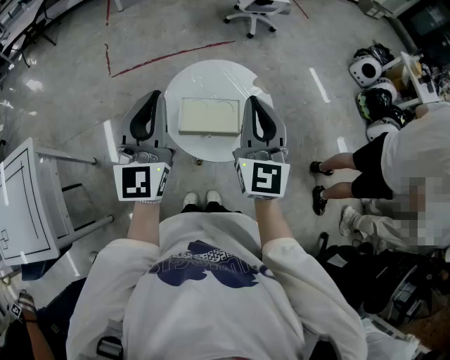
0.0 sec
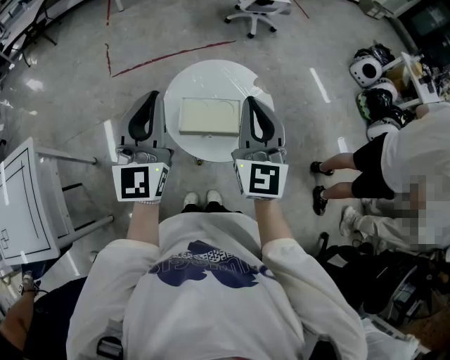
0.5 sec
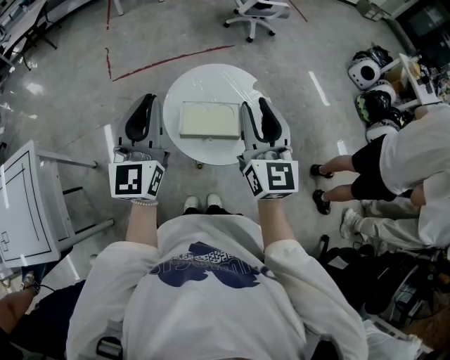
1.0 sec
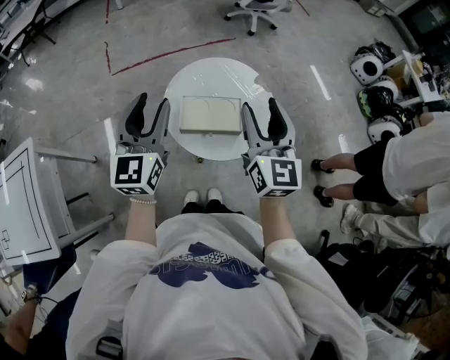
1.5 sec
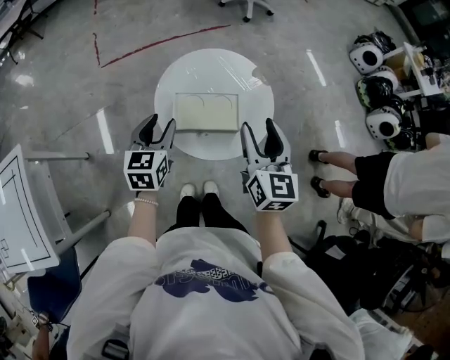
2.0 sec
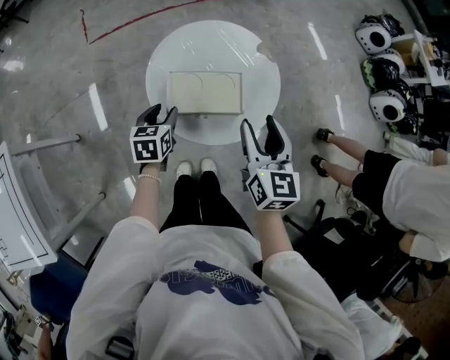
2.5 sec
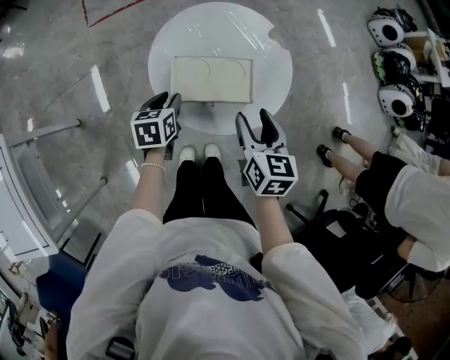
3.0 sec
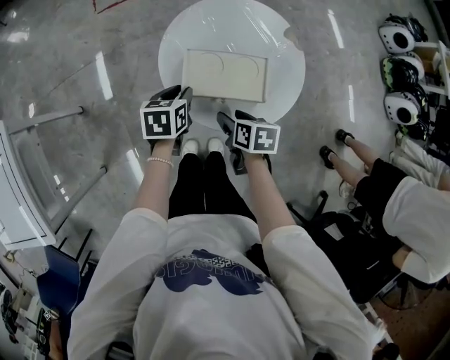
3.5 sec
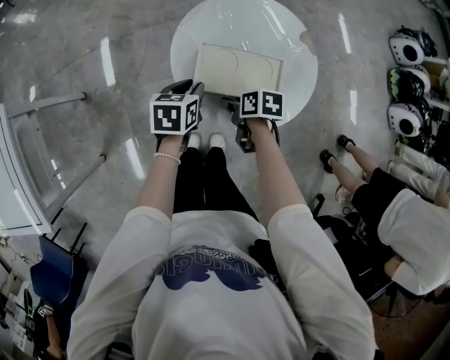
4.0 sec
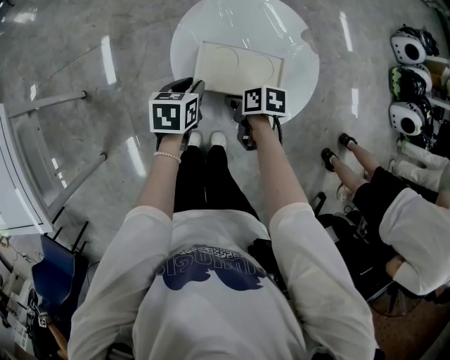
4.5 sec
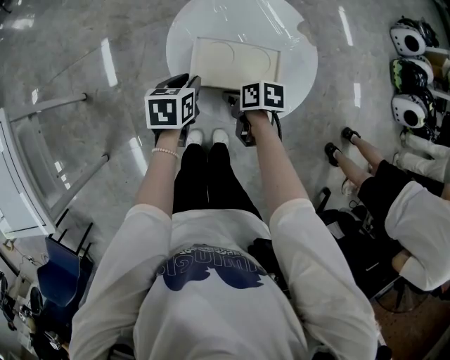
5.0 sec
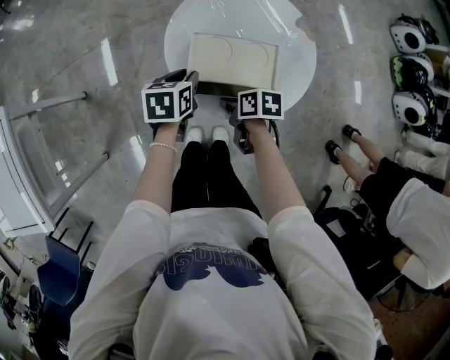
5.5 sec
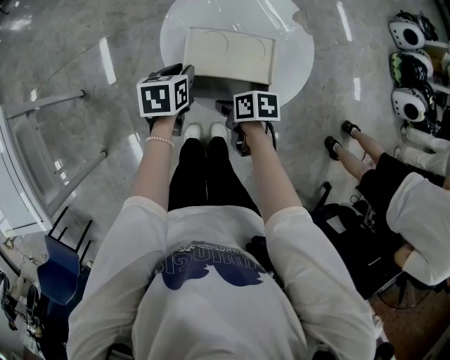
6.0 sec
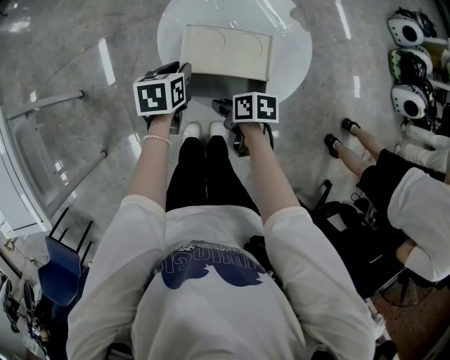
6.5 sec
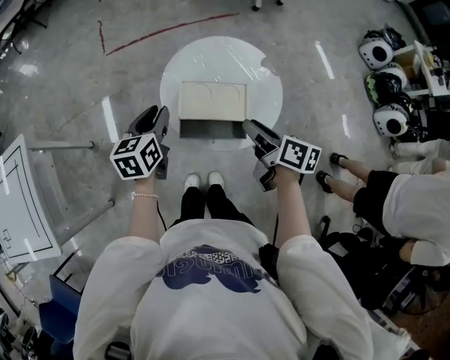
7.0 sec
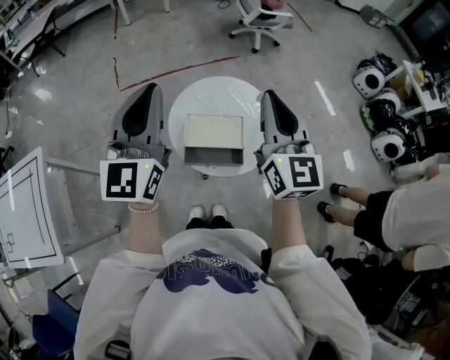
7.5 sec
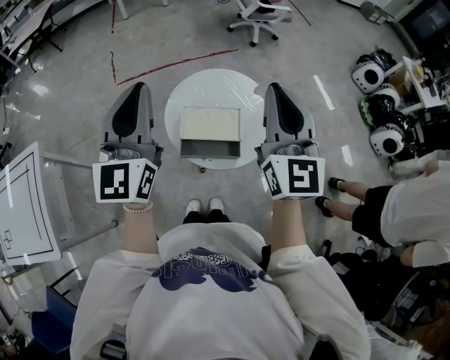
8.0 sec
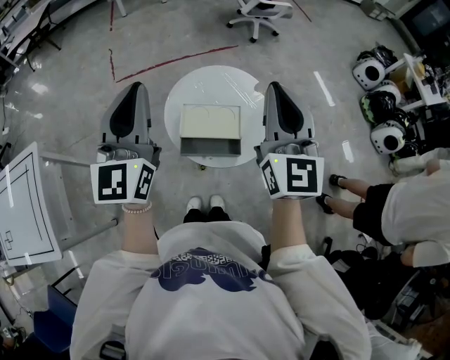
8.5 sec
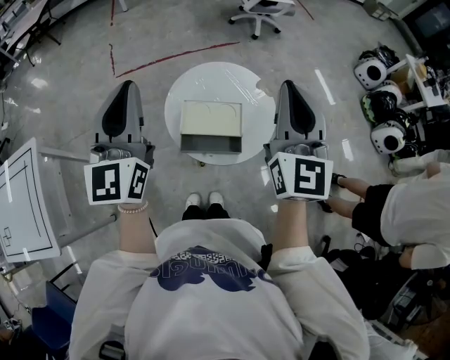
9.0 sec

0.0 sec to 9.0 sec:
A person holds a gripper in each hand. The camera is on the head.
0.0 sec to 2.0 sec: The right gripper travels downward by approximately 10 cm, rotates roughly 30 degrees, and opens. The left gripper is displaced downward by about 25 cm, tips its fingers downward by about 40 degrees, and opens.
2.0 sec to 4.5 sec: The right gripper moves downward, approximately 35 cm, tilts its fingers some 40 degrees downward, and closes, while the left gripper is displaced downward by some 20 cm, and swivels roughly 30 degrees.
4.5 sec to 7.0 sec: The two grippers go some 20 cm upward. The left gripper turns by some 20 degrees, while the right gripper changes its angle by approximately 40 degrees.
7.0 sec to 9.0 sec: Both grippers travel together upward, roughly 30 cm. The right gripper rotates around the line of its fingers by about 60 degrees, counterclockwise from behind, and closes. Meanwhile the left gripper tilts its fingers approximately 40 degrees upward, and closes.

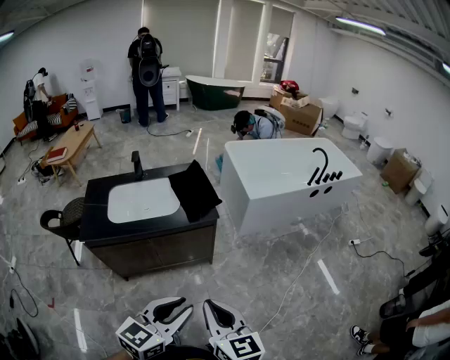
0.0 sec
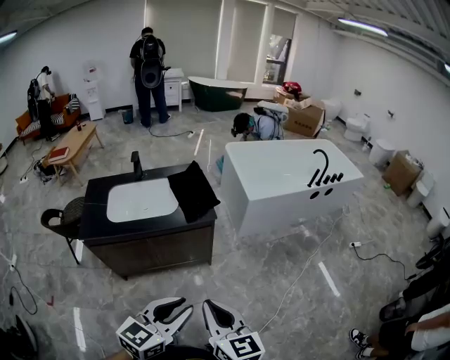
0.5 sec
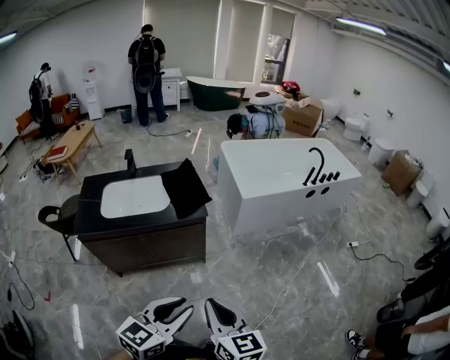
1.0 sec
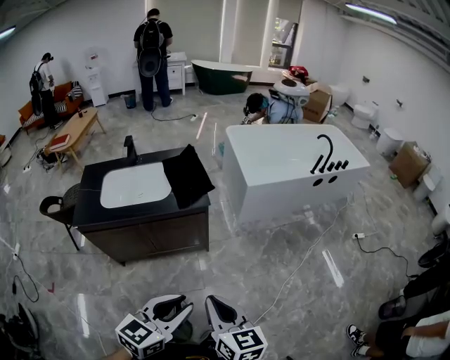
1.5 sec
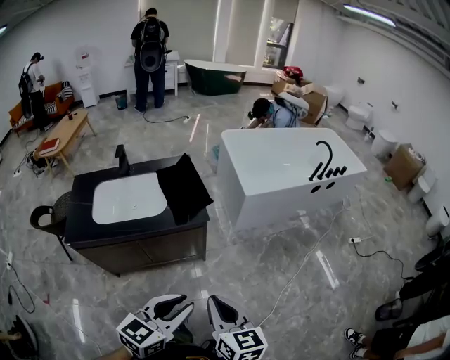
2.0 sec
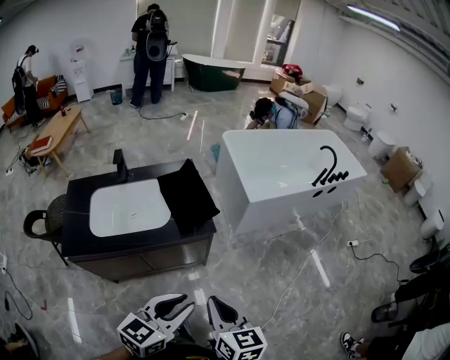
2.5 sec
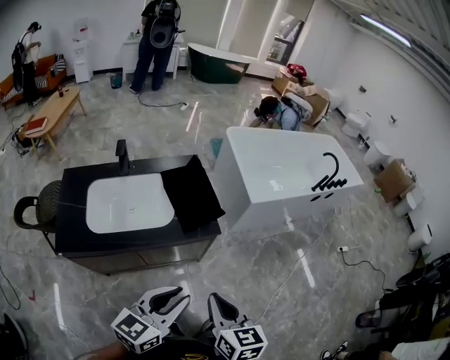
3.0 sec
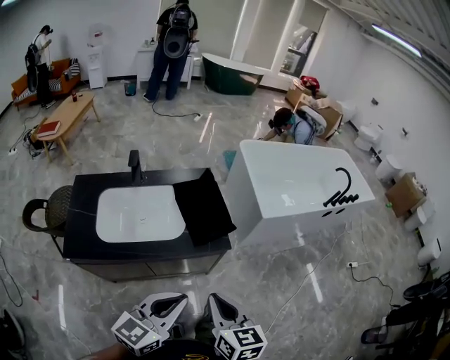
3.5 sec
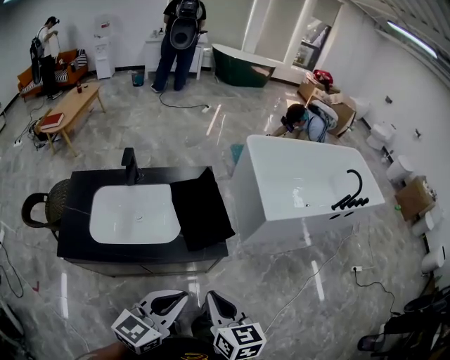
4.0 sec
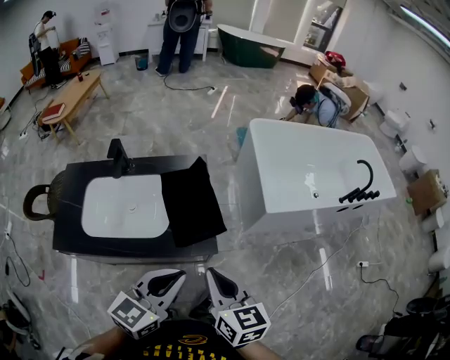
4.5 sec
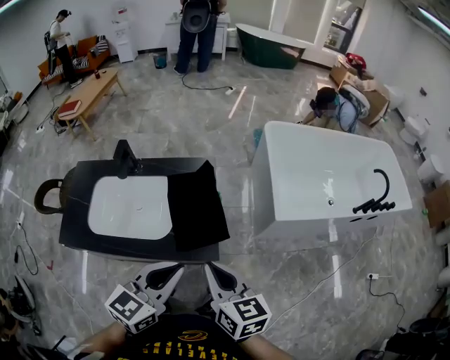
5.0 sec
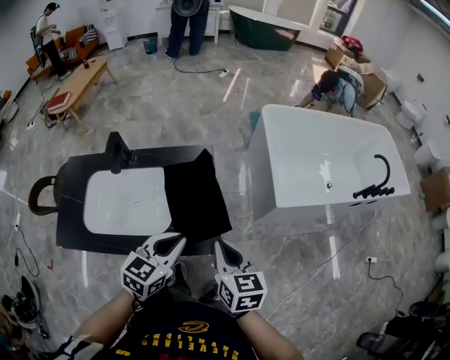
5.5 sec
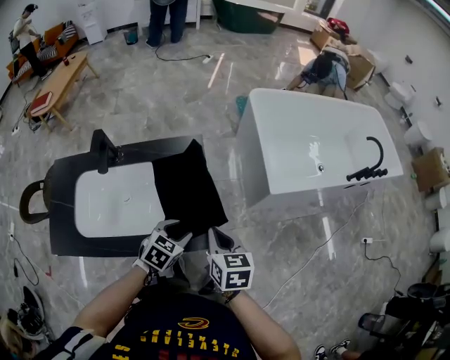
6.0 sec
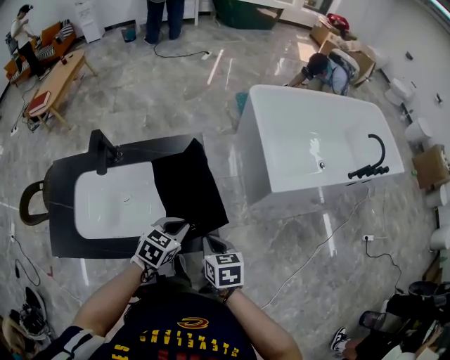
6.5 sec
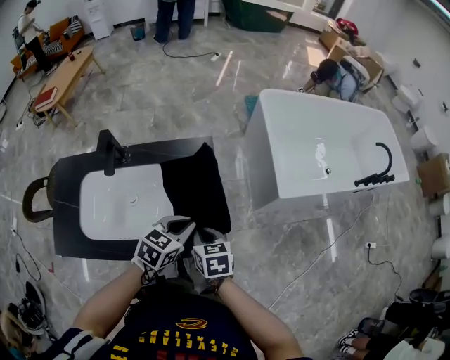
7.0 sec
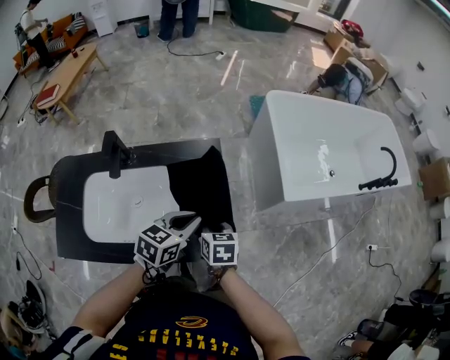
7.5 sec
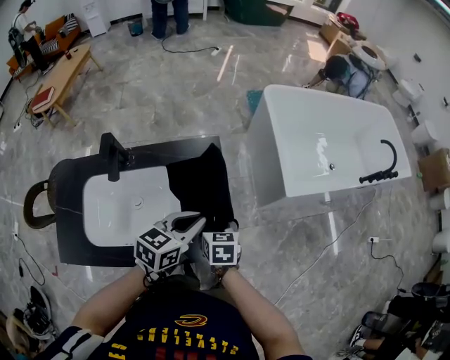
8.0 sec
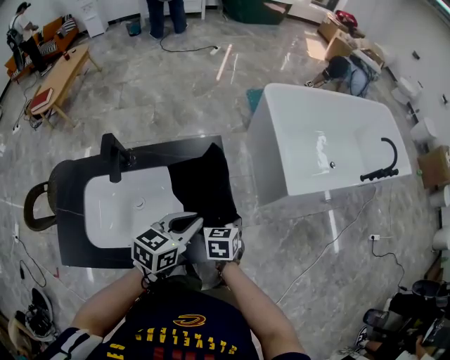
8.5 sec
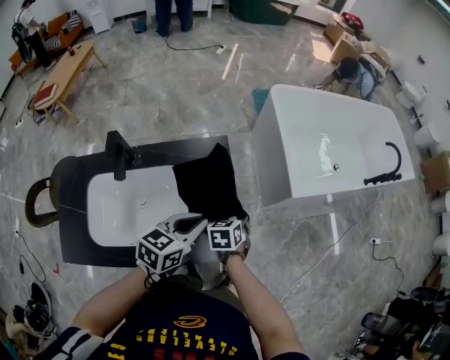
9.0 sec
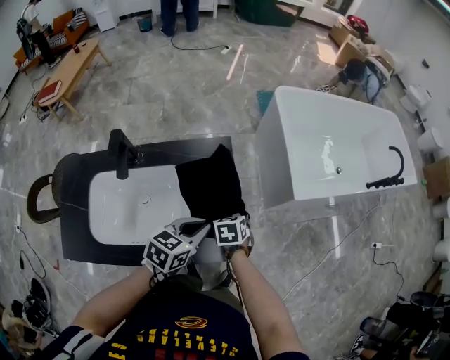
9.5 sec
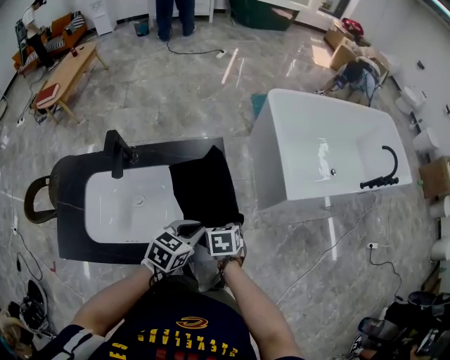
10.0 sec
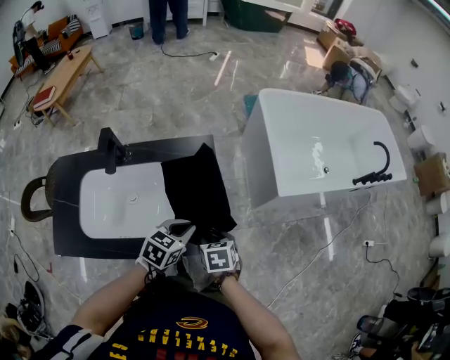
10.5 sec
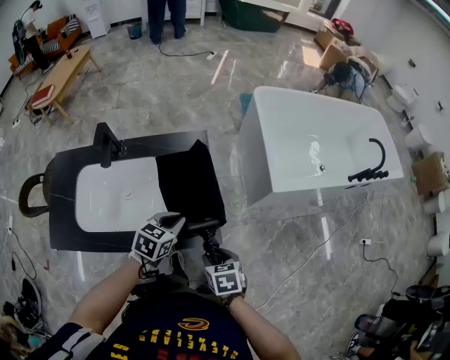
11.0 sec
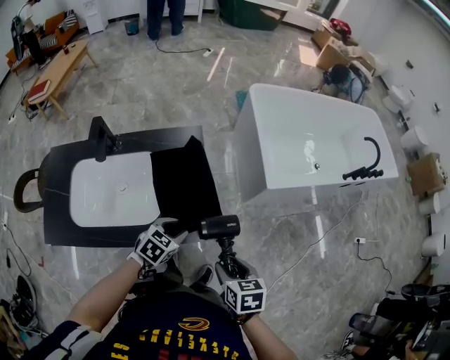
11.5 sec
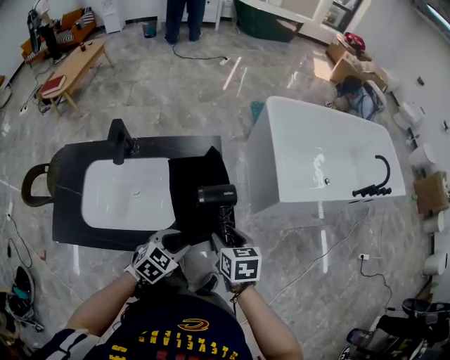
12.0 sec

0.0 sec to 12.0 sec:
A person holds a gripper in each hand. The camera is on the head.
0.0 sec to 2.0 sec: Both grippers travel together forward and to the right, about 10 cm.
2.0 sec to 4.0 sec: Both grippers travel together forward and to the left, about 25 cm. The left gripper closes up.
4.0 sec to 6.0 sec: Both grippers travel together forward and downward, approximately 30 cm. The left gripper points its fingers some 40 degrees further downward, and opens up.
6.0 sec to 8.0 sec: The right gripper shifts some 15 cm downward, to the left and forward, and opens its fingers; the left gripper moves upward and forward, some 10 cm, turns by some 30 degrees, and closes up.
8.0 sec to 10.0 sec: The left gripper moves downward, approximately 5 cm.
10.0 sec to 12.0 sec: The left gripper goes approximately 10 cm backward, and opens its fingers, while the right gripper is displaced upward, backward and to the right by some 15 cm.

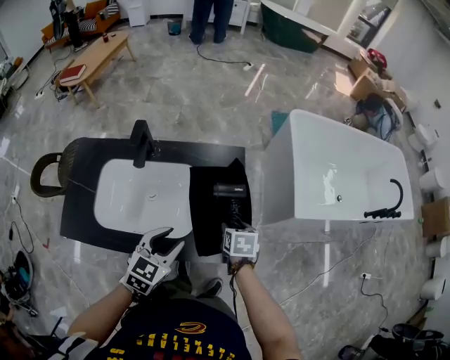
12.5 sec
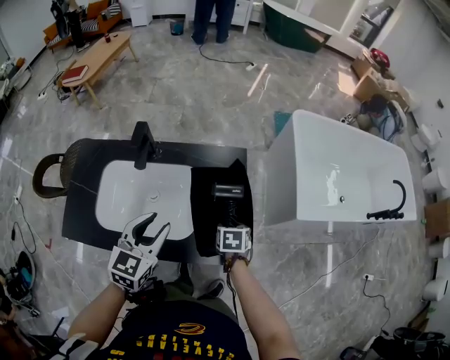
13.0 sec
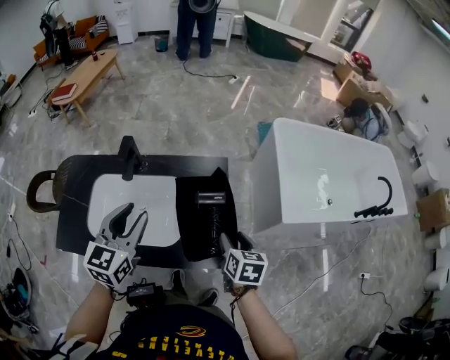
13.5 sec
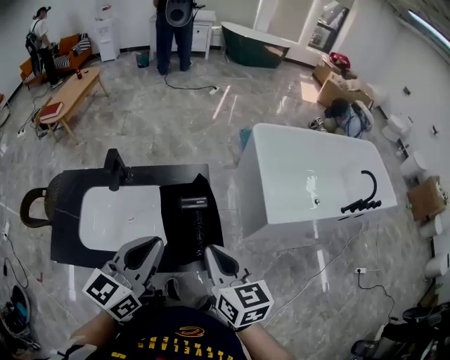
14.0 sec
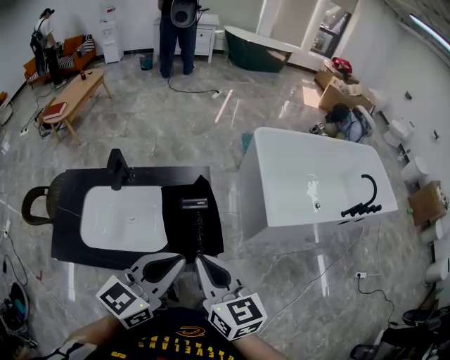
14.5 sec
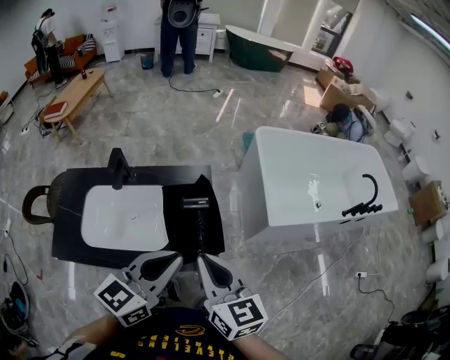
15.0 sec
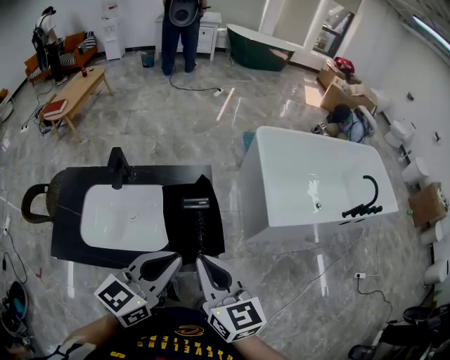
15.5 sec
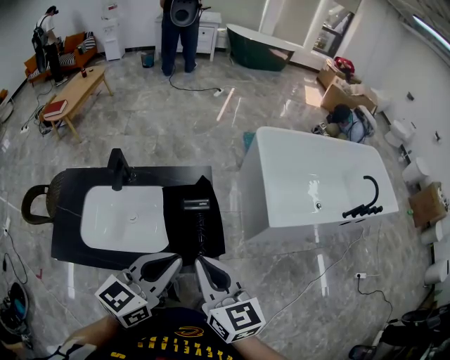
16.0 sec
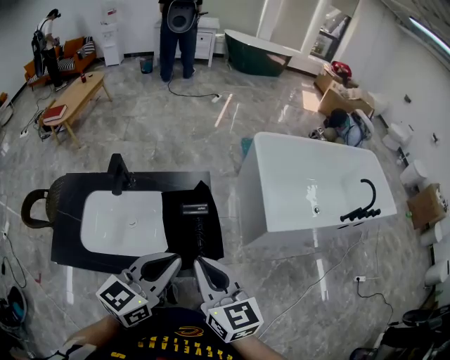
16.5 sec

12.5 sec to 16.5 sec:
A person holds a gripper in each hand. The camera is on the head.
12.5 sec to 14.5 sec: The right gripper shifts approximately 30 cm upward, points its fingers roughly 50 degrees further upward, and closes. Meanwhile the left gripper moves upward and to the right, some 25 cm, changes its angle by roughly 30 degrees, and closes.
14.5 sec to 16.5 sec: There are only small adjustments of the grippers.

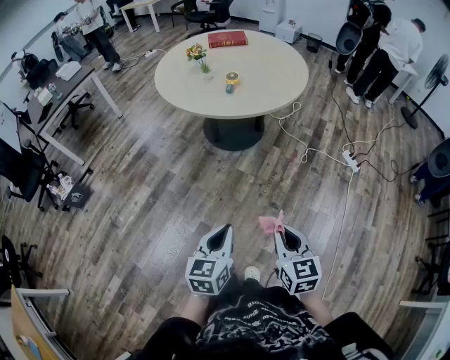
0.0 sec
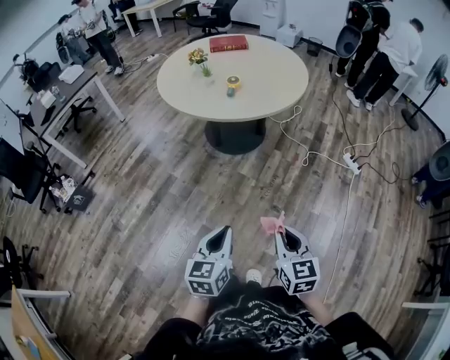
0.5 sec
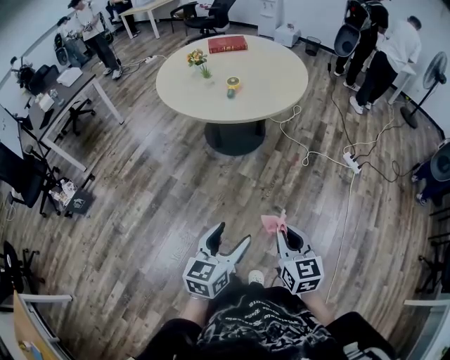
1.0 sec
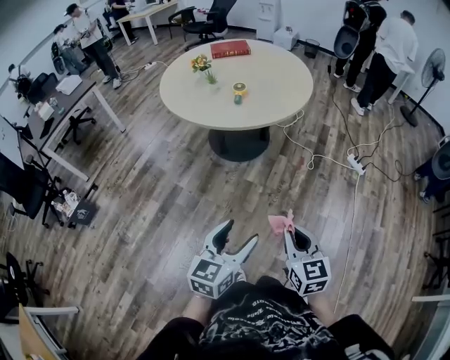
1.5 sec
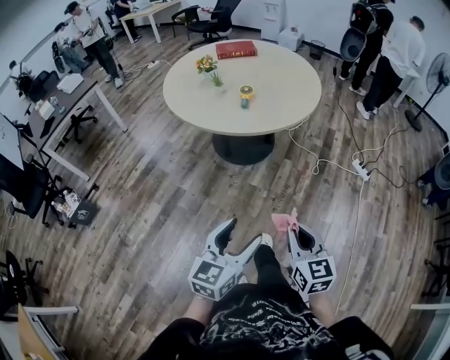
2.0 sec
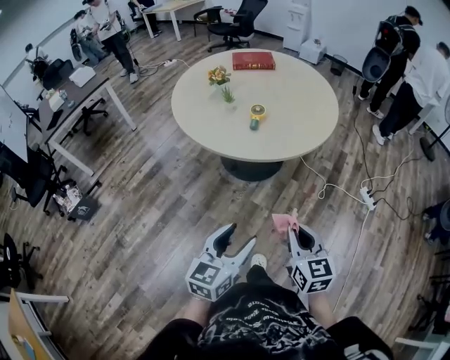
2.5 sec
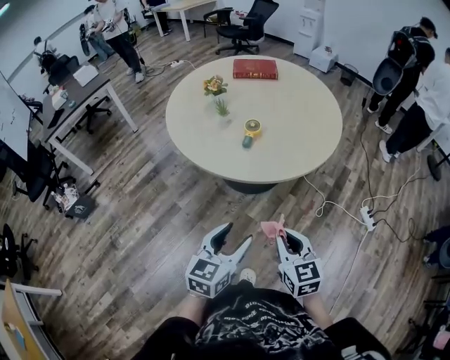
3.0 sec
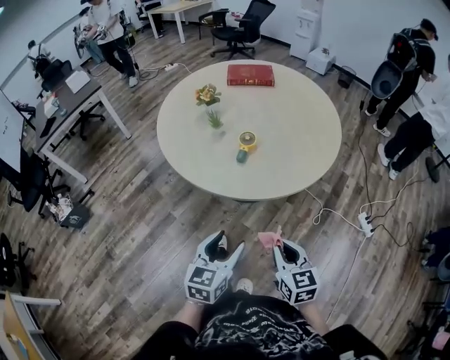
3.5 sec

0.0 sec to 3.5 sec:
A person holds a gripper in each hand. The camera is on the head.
0.0 sec to 2.0 sec: The right gripper travels forward and to the left by roughly 10 cm. Meanwhile the left gripper goes some 10 cm forward, and opens.
2.0 sec to 3.5 sec: The two grippers go approximately 30 cm forward.
